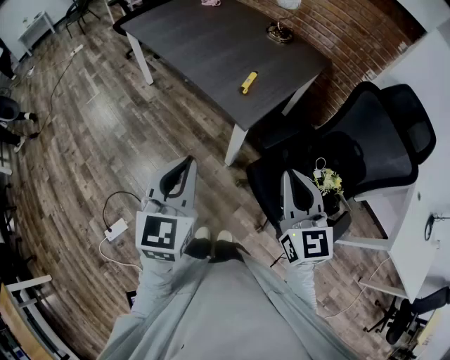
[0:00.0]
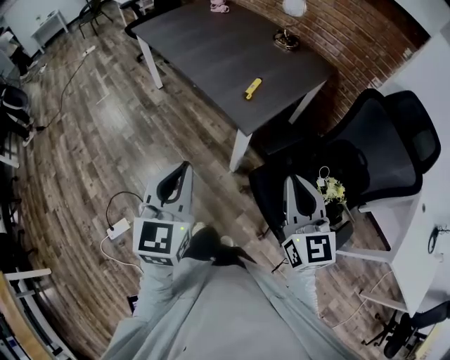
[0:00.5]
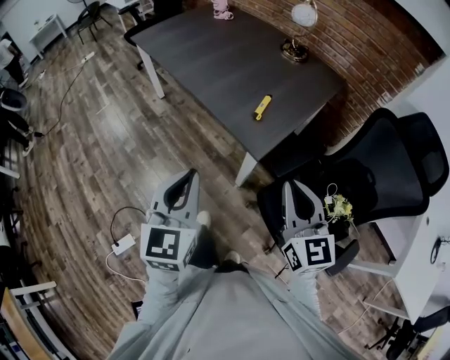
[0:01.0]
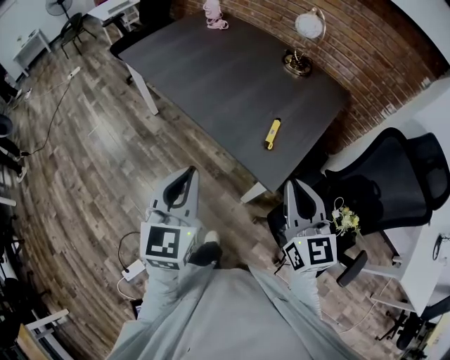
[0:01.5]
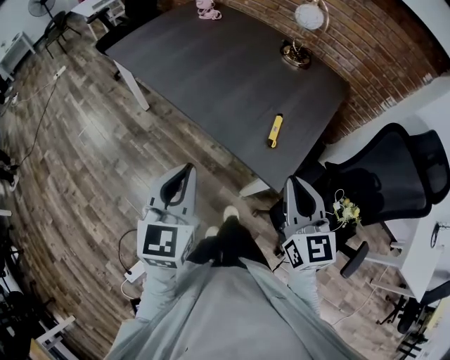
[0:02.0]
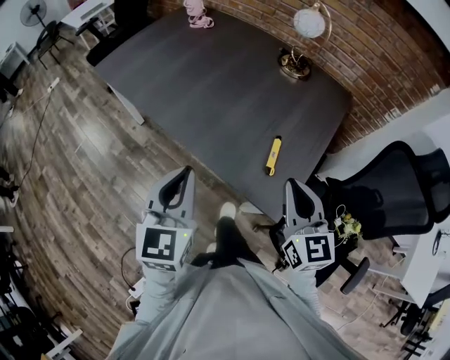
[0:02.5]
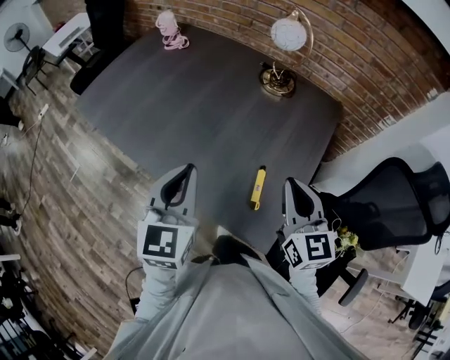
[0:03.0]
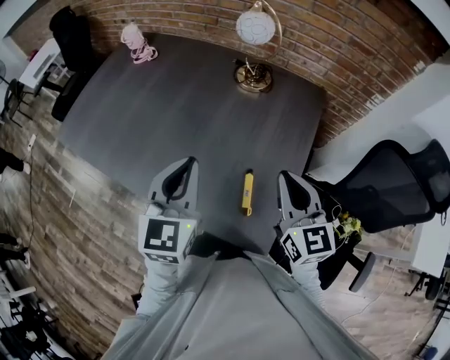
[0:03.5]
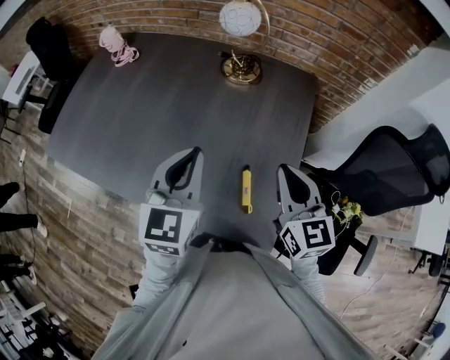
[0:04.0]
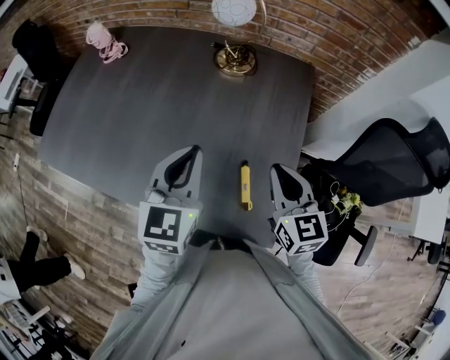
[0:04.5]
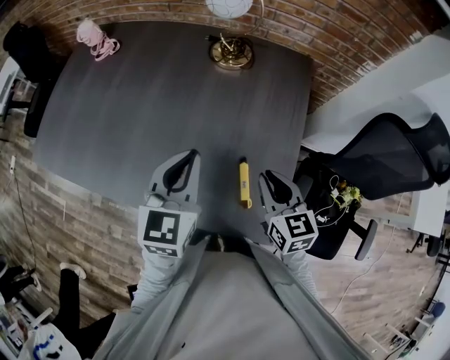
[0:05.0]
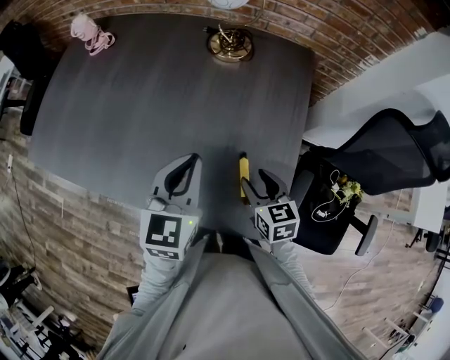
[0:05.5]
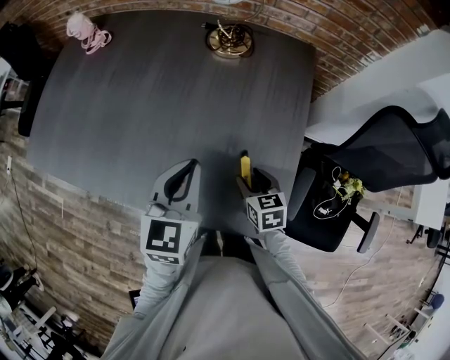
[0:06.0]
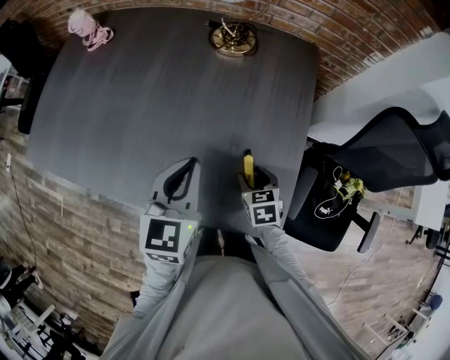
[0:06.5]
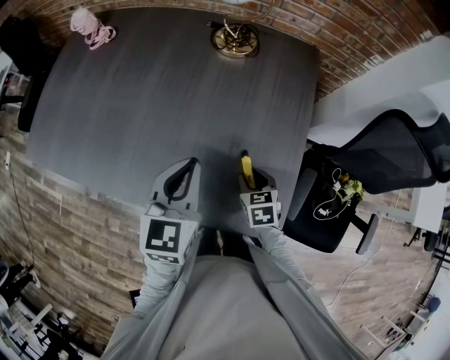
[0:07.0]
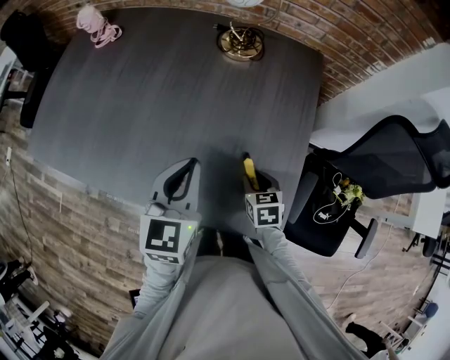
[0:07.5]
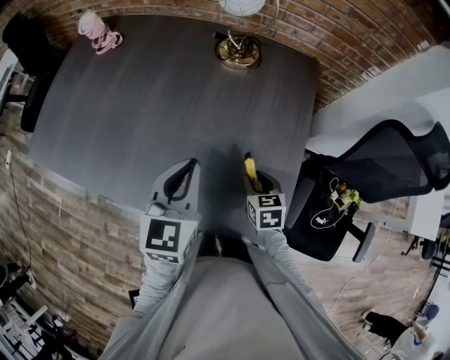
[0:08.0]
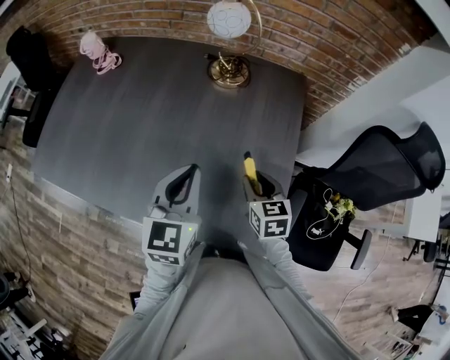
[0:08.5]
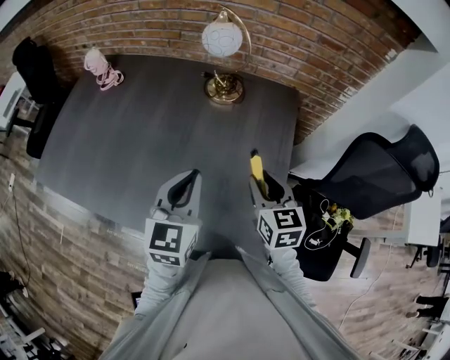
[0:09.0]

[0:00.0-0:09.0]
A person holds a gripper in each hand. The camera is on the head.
0:00.0 to 0:02.0: The two grippers go about 30 cm forward and to the left.
0:02.0 to 0:04.5: The grippers both shift forward by approximately 35 cm. The left gripper changes its angle by about 30 degrees. Meanwhile the right gripper rotates some 20 degrees.
0:04.5 to 0:07.0: The left gripper moves downward, roughly 5 cm. Meanwhile the right gripper moves downward, some 25 cm, points its fingers approximately 30 degrees further downward, and opens.
0:07.0 to 0:09.0: The right gripper goes about 20 cm upward, and changes its angle by roughly 30 degrees; the left gripper moves upward, approximately 5 cm.

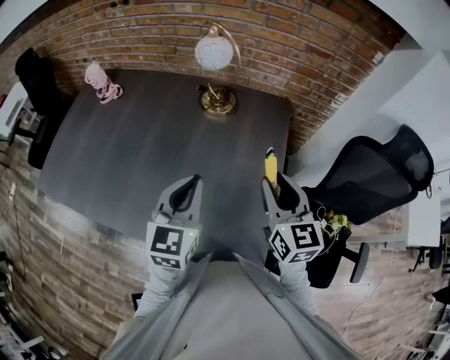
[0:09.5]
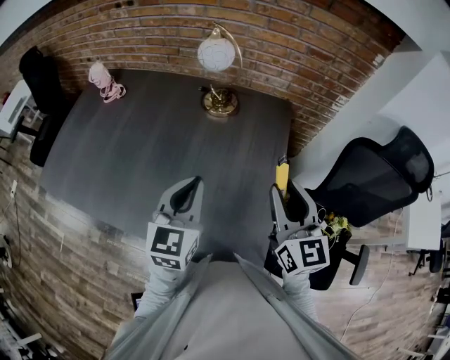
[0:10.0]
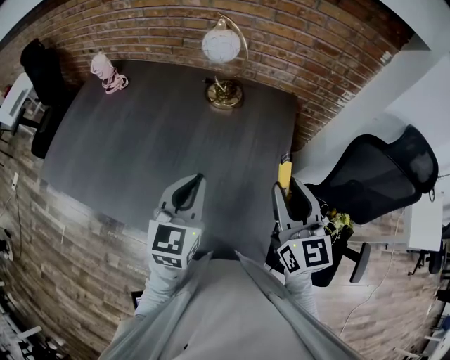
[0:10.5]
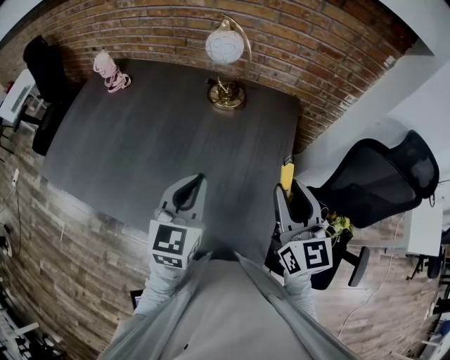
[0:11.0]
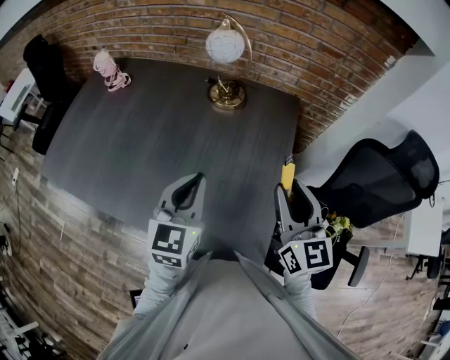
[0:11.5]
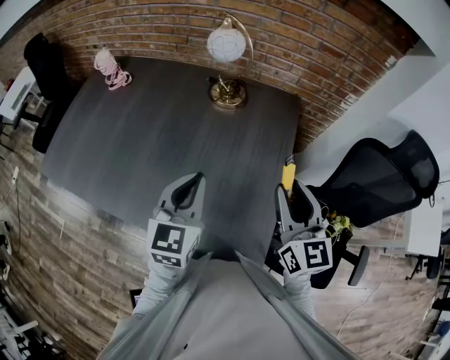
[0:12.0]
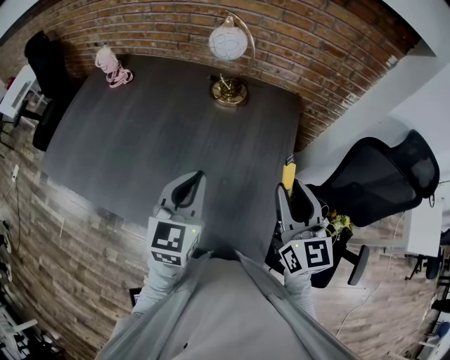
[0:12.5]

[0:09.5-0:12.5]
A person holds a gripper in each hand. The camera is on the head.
0:09.5 to 0:11.0: There are only small adjustments of the grippers.
0:11.0 to 0:12.5: Both grippers stay about where they are.

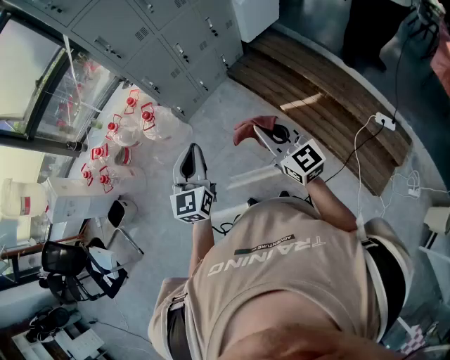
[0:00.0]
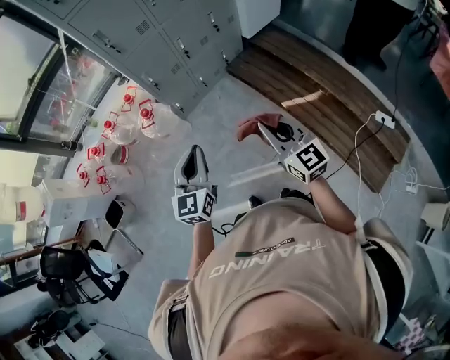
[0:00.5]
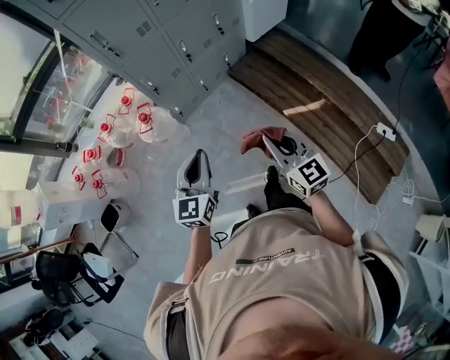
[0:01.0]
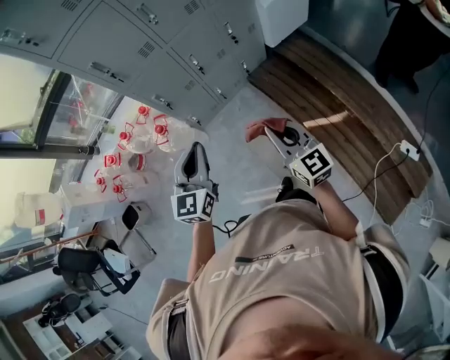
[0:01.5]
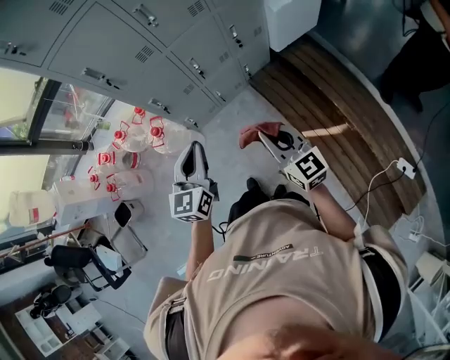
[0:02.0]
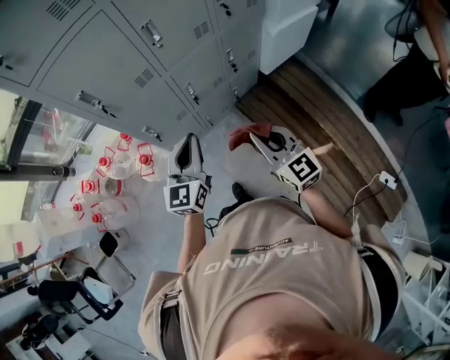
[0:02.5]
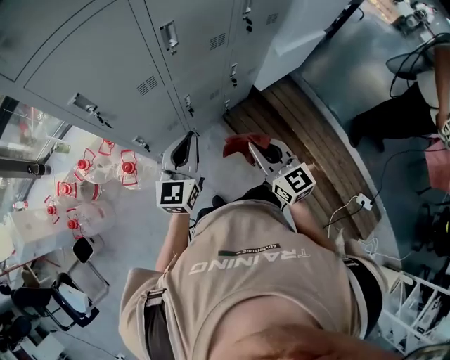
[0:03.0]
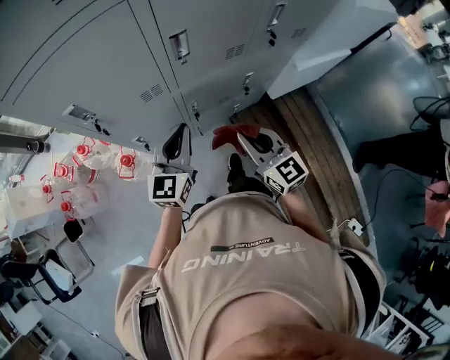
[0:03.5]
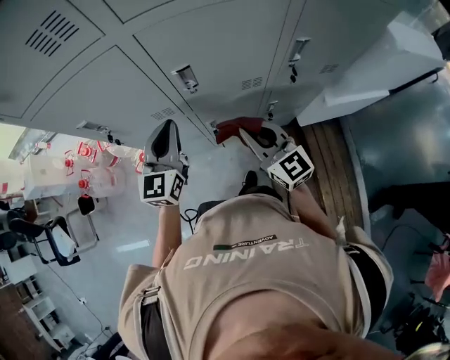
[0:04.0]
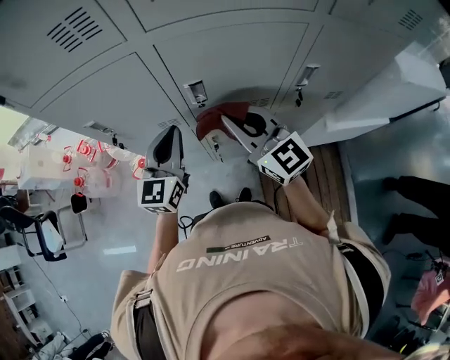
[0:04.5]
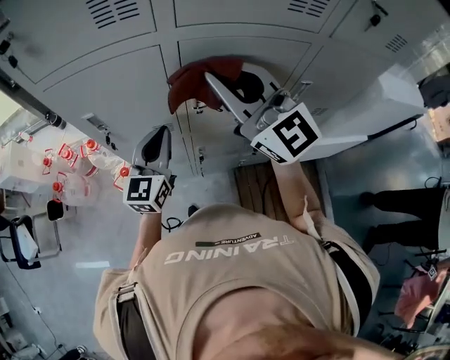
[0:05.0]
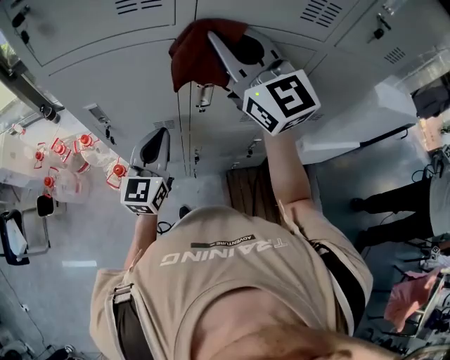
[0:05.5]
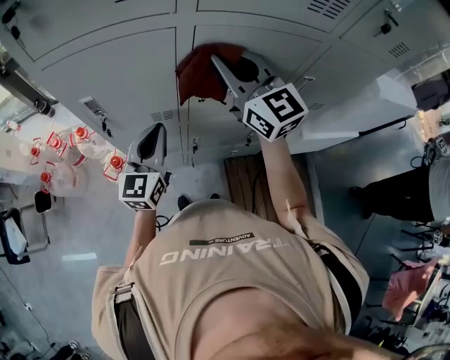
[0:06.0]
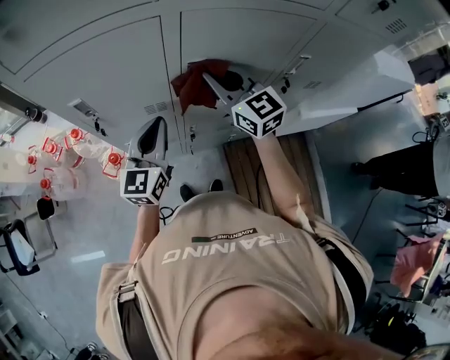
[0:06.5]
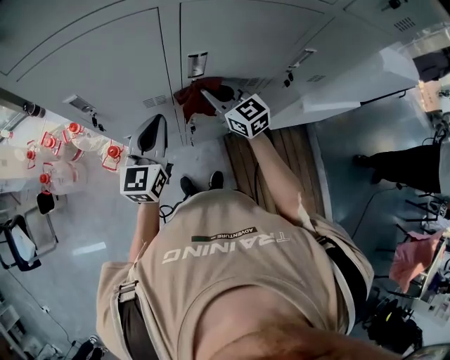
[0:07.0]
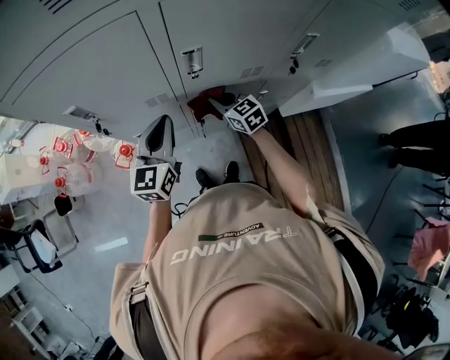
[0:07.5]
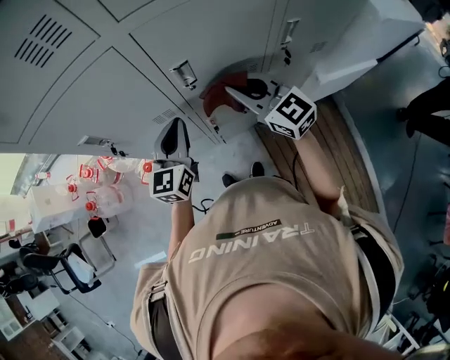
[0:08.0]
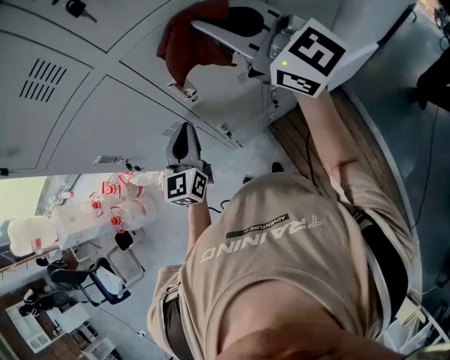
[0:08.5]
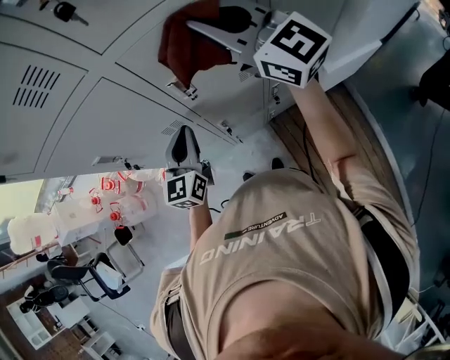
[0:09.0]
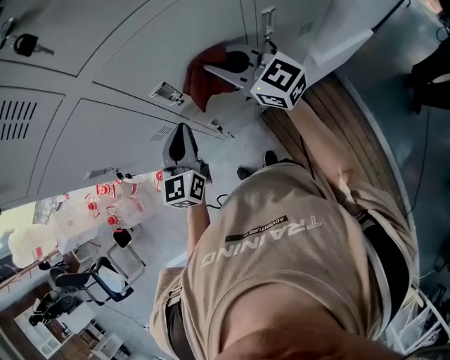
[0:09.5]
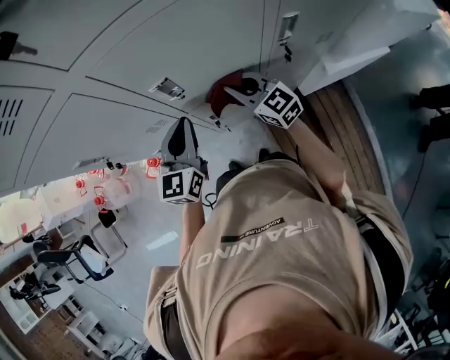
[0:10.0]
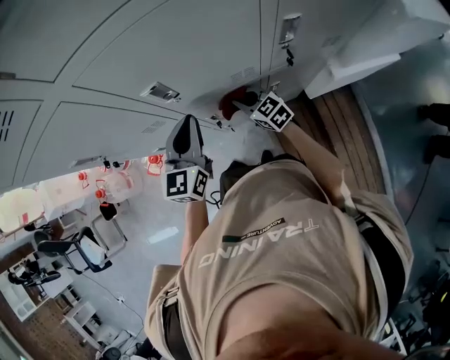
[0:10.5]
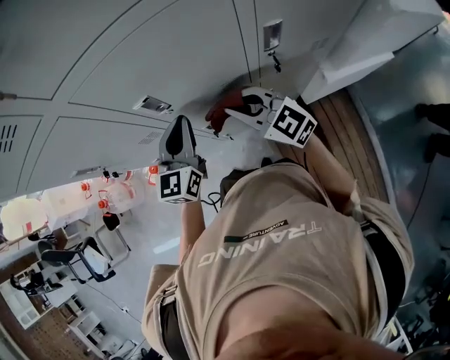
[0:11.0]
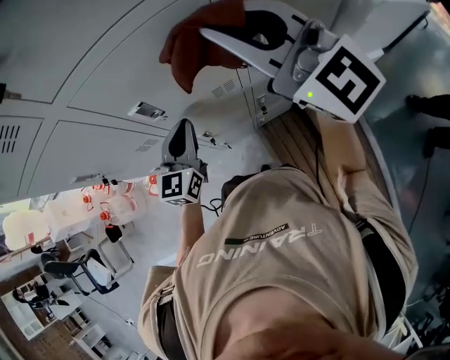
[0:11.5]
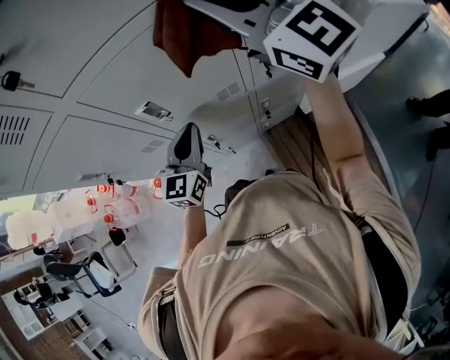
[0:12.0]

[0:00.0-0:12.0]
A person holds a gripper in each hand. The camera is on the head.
0:00.0 to 0:02.0: Both grippers move forward, some 30 cm.
0:02.0 to 0:04.0: Both grippers are carried roughly 40 cm. The right gripper rotates about 20 degrees.
0:04.0 to 0:06.0: The right gripper heads upward and forward, covering approximately 25 cm.
0:06.0 to 0:08.0: The right gripper heads downward and to the right, covering approximately 15 cm, while the left gripper moves approximately 5 cm.
0:08.0 to 0:10.0: The right gripper moves forward, approximately 5 cm, and travels upward and back again, some 25 cm each way; the left gripper moves to the right, roughly 5 cm.
0:10.0 to 0:12.0: The right gripper is displaced upward by some 35 cm, and swivels some 30 degrees. Meanwhile the left gripper travels to the right by approximately 5 cm.

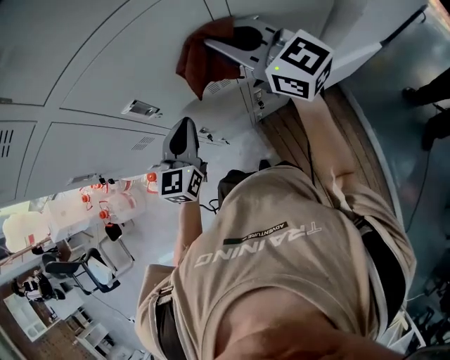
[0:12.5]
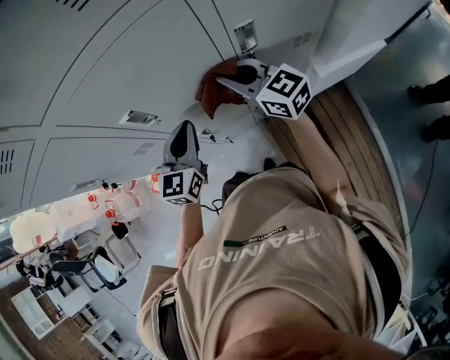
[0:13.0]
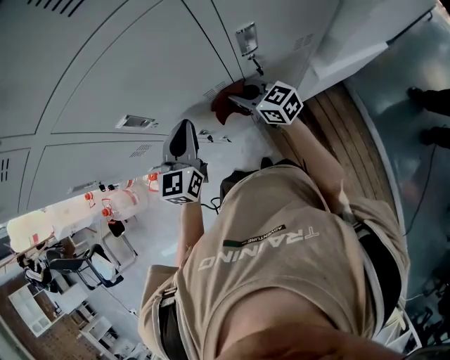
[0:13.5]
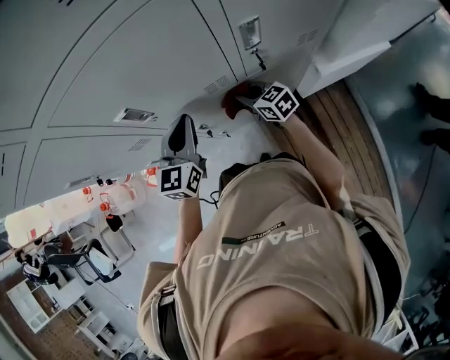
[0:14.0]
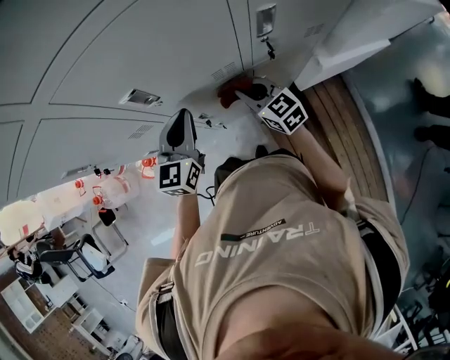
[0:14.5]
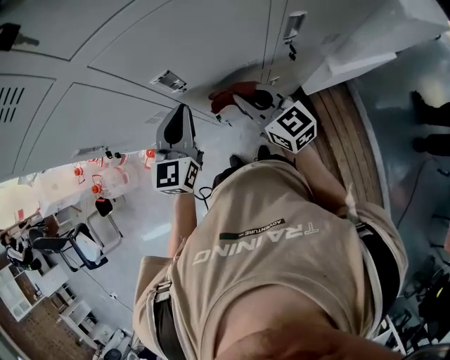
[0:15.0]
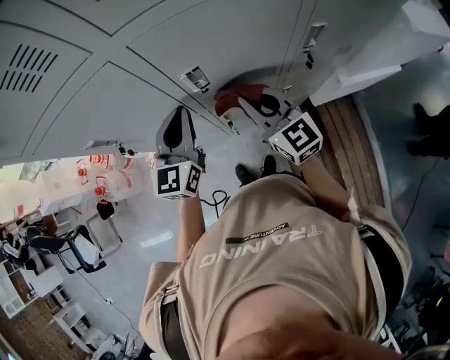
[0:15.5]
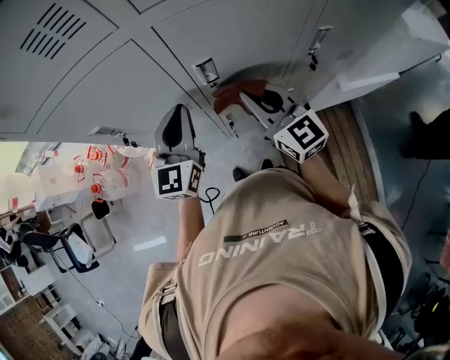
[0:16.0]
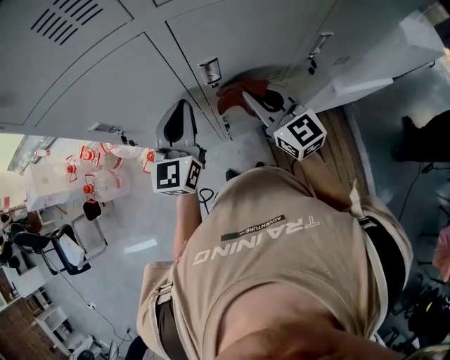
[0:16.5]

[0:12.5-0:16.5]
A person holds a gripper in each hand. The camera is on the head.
0:12.5 to 0:14.5: The right gripper shifts roughly 30 cm downward, and swivels about 30 degrees.
0:14.5 to 0:16.5: The right gripper shifts roughly 20 cm upward and to the left; the left gripper moves to the left and upward, some 15 cm.
